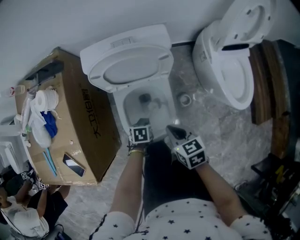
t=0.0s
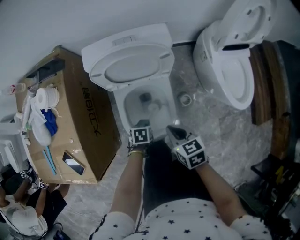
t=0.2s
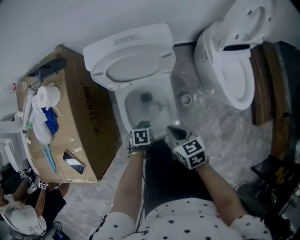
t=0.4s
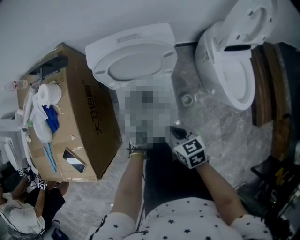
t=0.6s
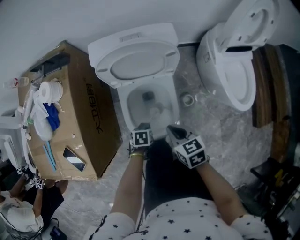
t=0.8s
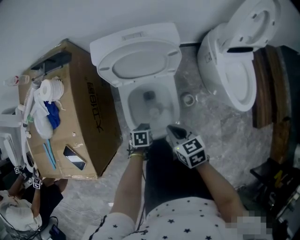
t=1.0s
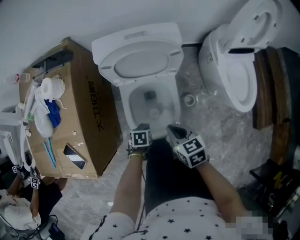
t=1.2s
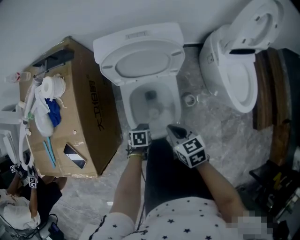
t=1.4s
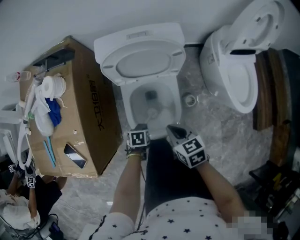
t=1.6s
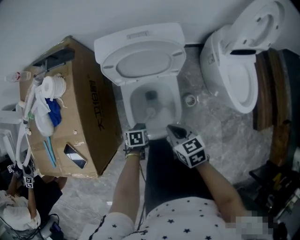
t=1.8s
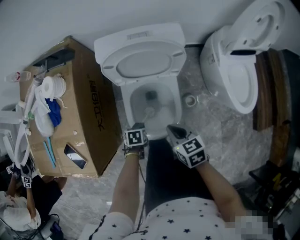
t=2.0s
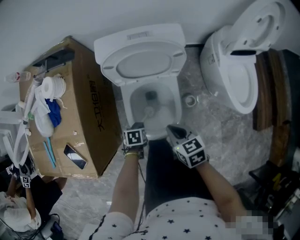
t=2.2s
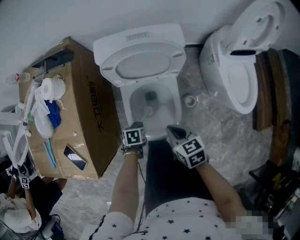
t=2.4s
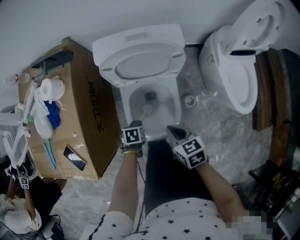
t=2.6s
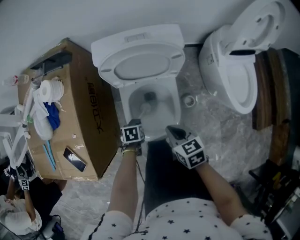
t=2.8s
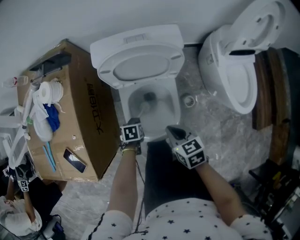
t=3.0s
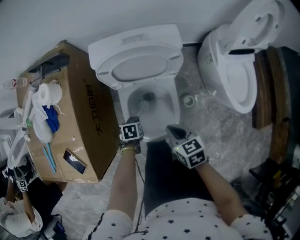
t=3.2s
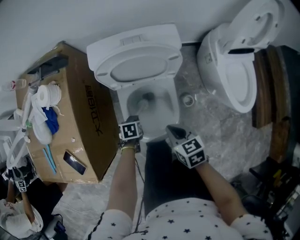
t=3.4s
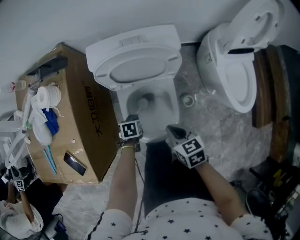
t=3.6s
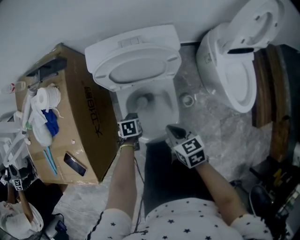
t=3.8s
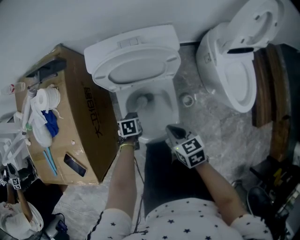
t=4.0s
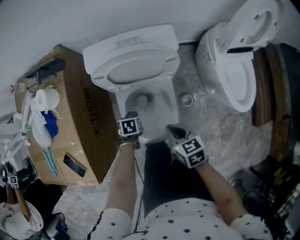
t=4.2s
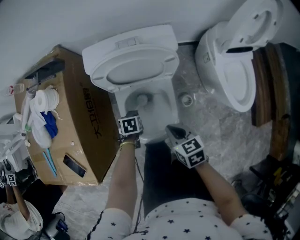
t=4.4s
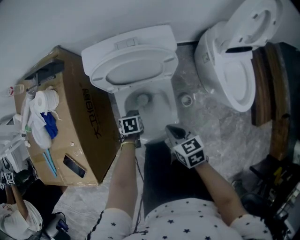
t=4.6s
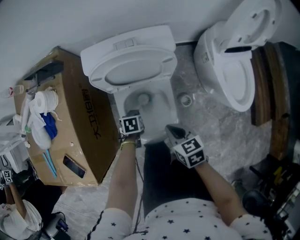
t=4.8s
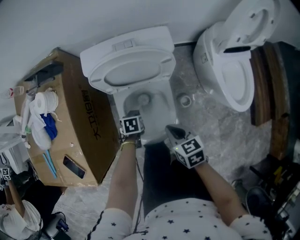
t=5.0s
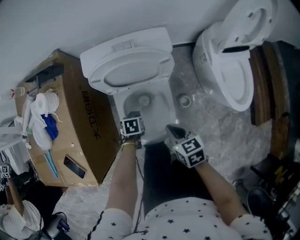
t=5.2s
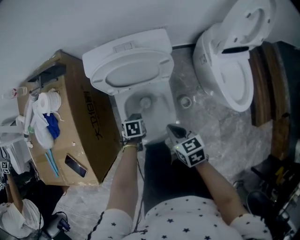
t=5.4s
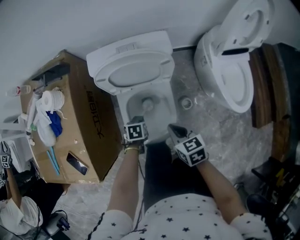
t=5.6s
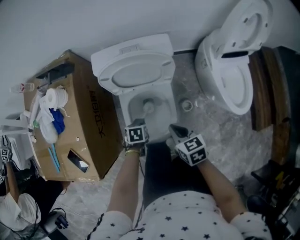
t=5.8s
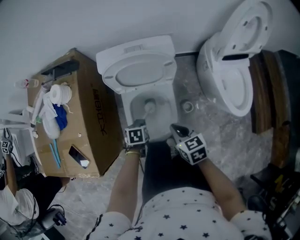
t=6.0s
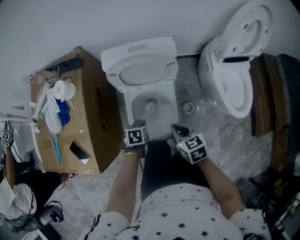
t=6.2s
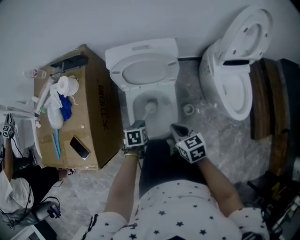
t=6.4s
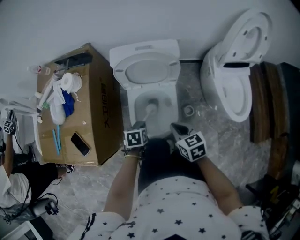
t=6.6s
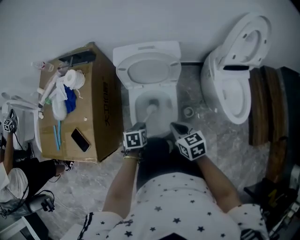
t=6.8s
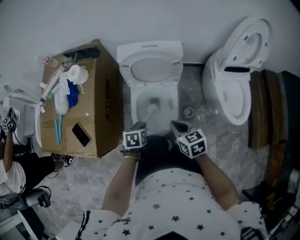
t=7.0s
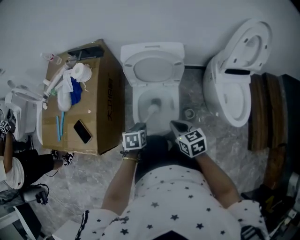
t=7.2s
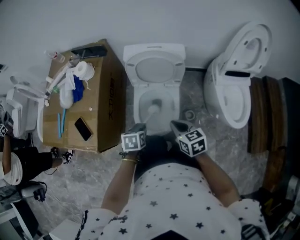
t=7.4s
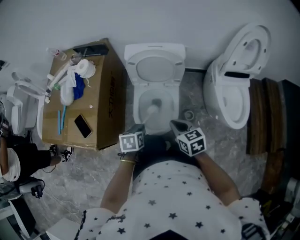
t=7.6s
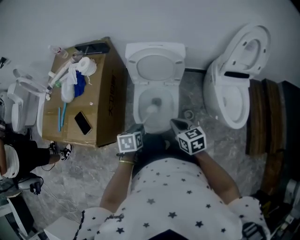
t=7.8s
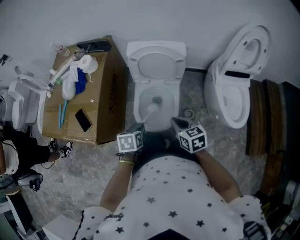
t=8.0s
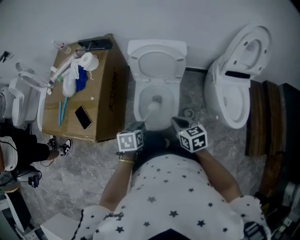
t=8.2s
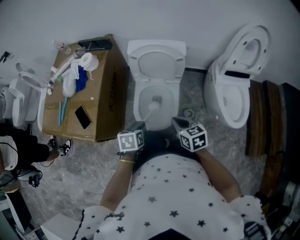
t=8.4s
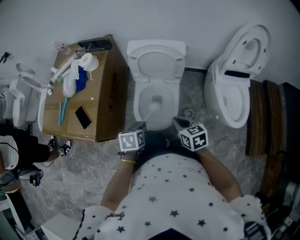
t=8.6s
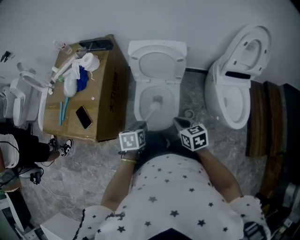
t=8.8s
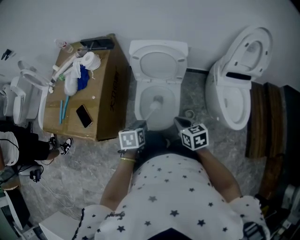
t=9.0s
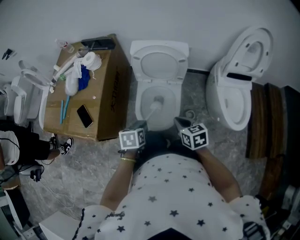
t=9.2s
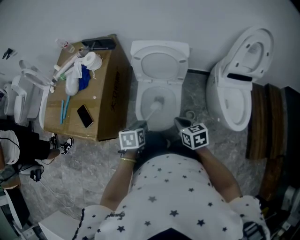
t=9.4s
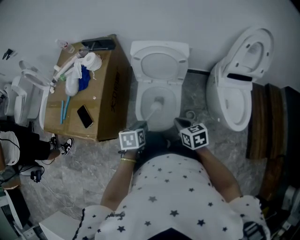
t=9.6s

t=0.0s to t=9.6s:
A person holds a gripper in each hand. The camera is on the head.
t=0.0s to t=1.6s: The left gripper changes place by approximately 10 cm.
t=1.6s to t=3.2s: The left gripper changes place by approximately 5 cm.
t=3.2s to t=4.8s: The left gripper shifts by about 5 cm.
t=4.8s to t=6.4s: The left gripper is displaced upward and backward by approximately 15 cm, while the right gripper heads upward, covering some 5 cm.
t=6.4s to t=8.0s: The left gripper is displaced backward and upward by roughly 15 cm, while the right gripper shifts roughly 10 cm upward and backward.
t=8.0s to t=9.6s: The grippers move only a little.

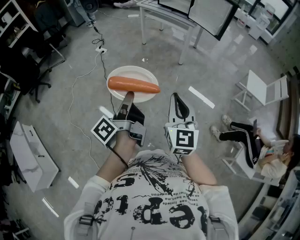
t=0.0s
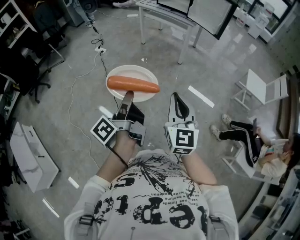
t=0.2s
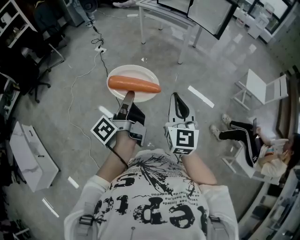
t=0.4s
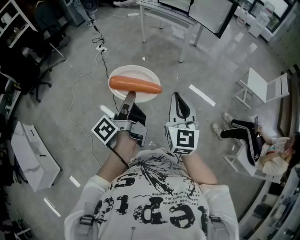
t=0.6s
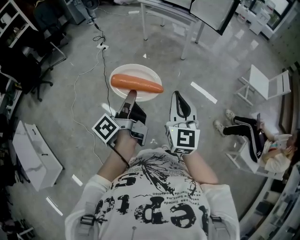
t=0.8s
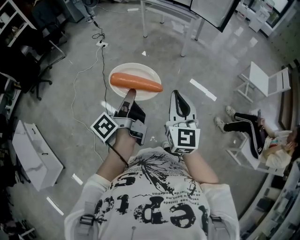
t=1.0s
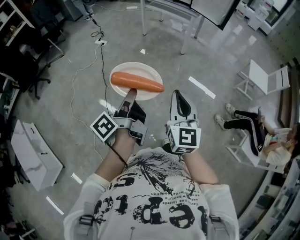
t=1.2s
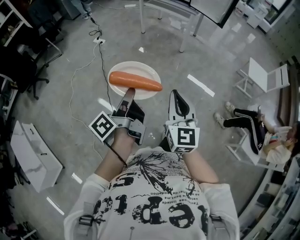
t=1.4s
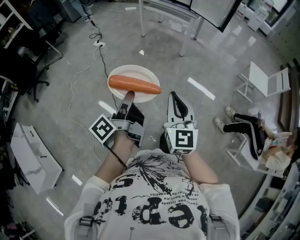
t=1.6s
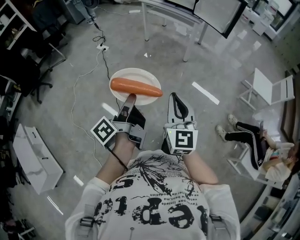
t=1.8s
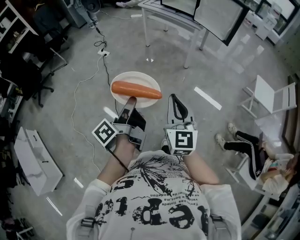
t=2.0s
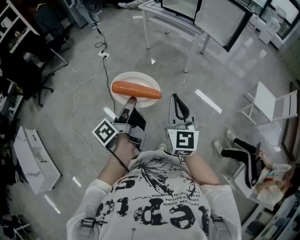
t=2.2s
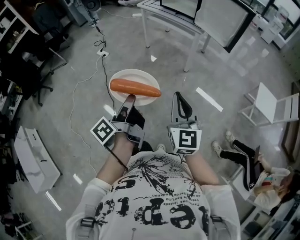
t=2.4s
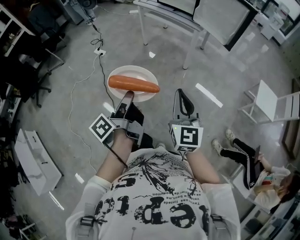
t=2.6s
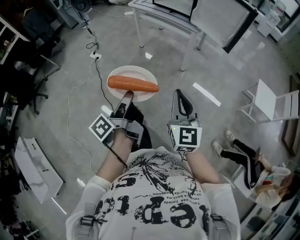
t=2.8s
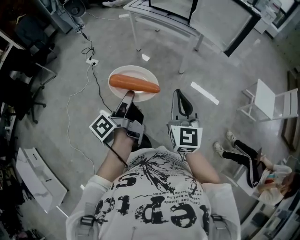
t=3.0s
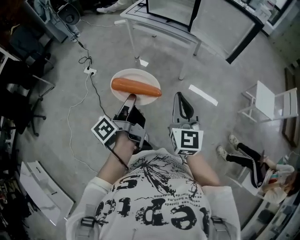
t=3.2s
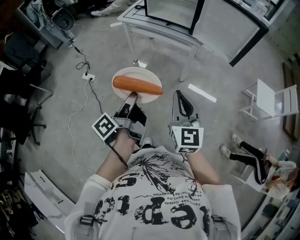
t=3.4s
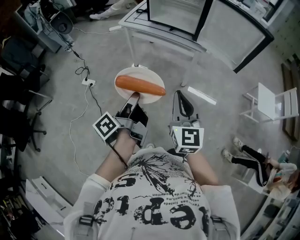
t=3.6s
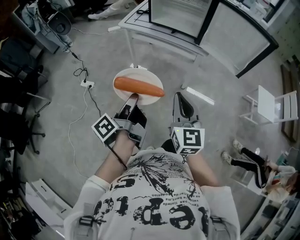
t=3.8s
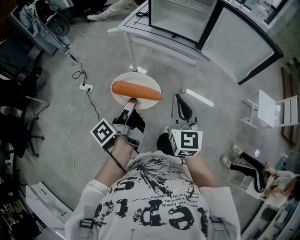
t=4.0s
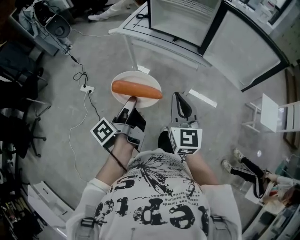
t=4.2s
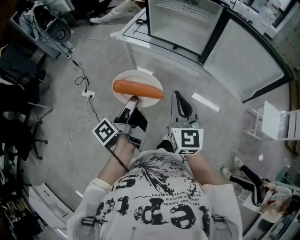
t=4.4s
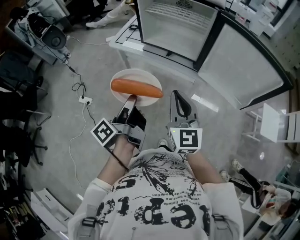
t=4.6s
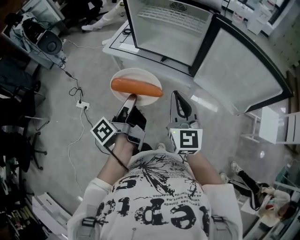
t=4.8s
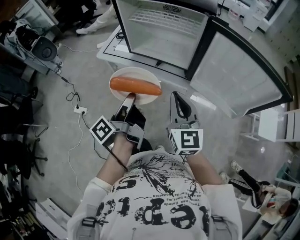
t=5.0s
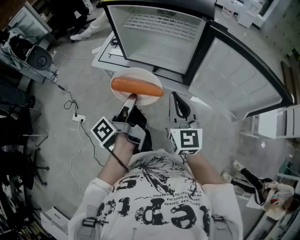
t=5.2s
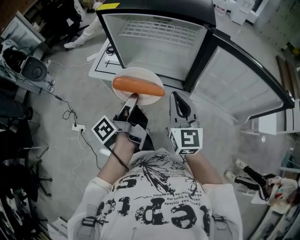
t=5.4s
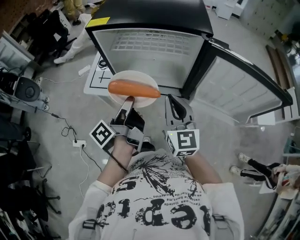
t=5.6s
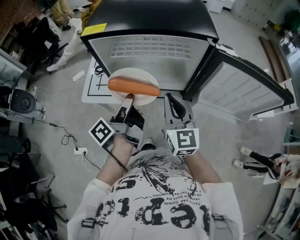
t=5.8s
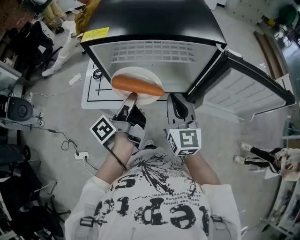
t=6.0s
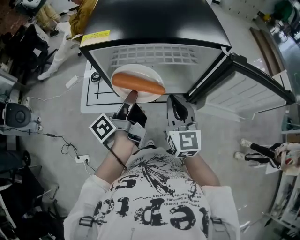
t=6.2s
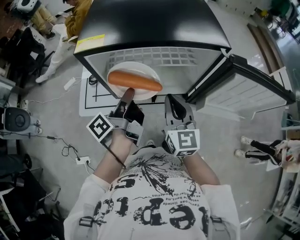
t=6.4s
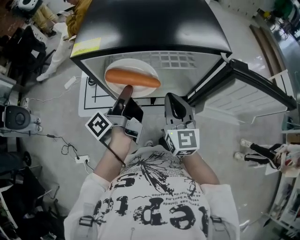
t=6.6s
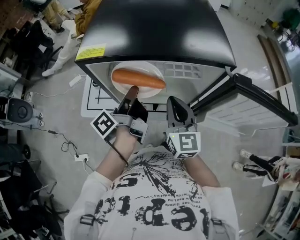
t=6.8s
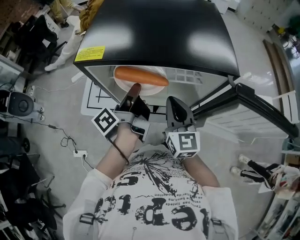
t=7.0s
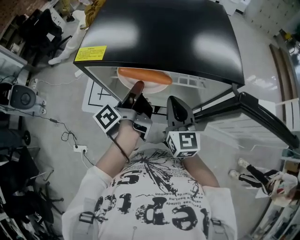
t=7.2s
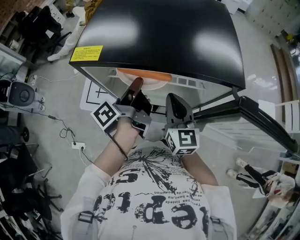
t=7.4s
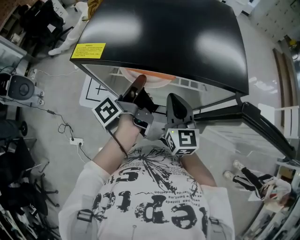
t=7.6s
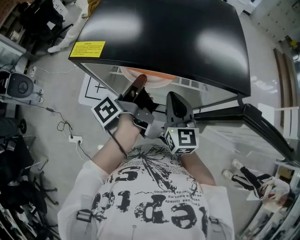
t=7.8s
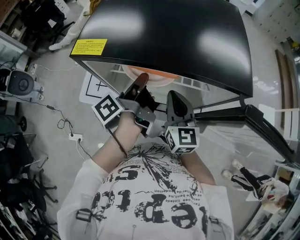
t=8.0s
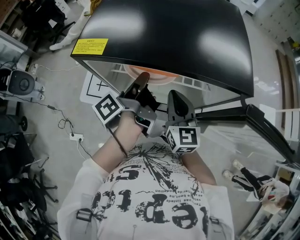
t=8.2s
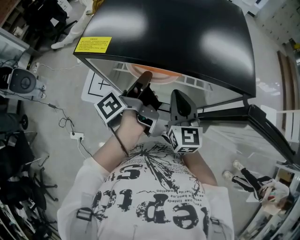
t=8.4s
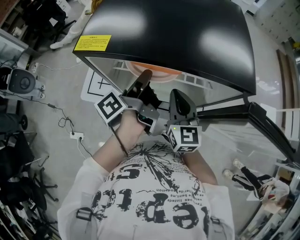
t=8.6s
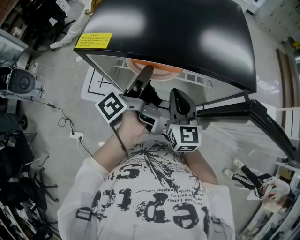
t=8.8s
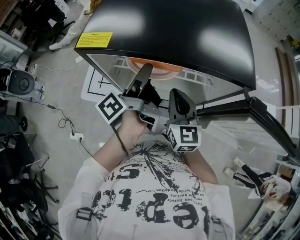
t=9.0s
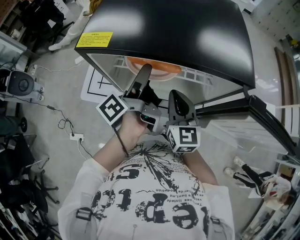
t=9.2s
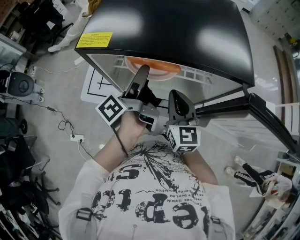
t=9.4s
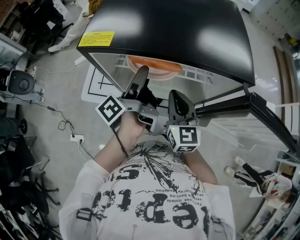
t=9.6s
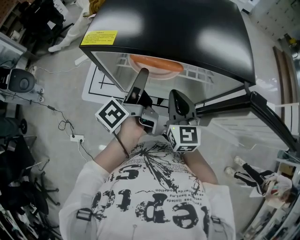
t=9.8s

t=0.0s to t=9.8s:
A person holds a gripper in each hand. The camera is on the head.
t=0.0s to t=1.4s: The right gripper ends up approximately 5 cm from where it was.
t=1.4s to t=2.8s: The right gripper shifts by approximately 35 cm.
t=2.8s to t=4.2s: The right gripper ends up some 40 cm from where it was.
t=4.2s to t=5.6s: The right gripper moves some 35 cm.
t=5.6s to t=7.0s: The right gripper shifts by about 15 cm.

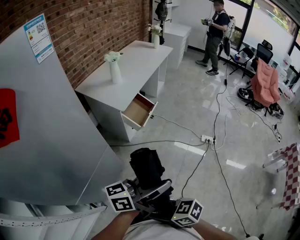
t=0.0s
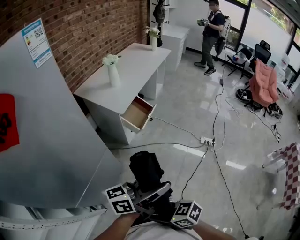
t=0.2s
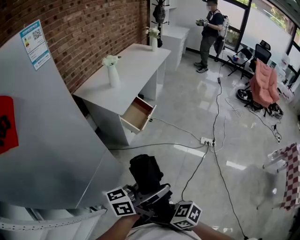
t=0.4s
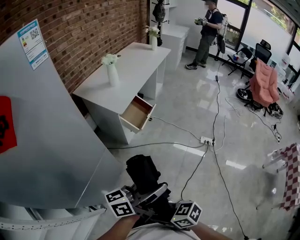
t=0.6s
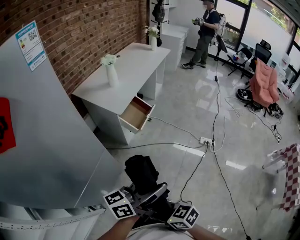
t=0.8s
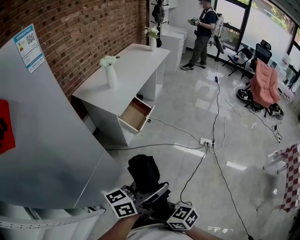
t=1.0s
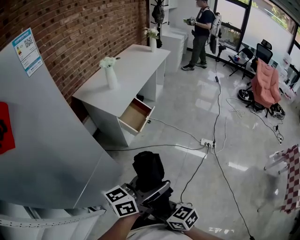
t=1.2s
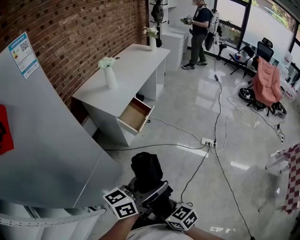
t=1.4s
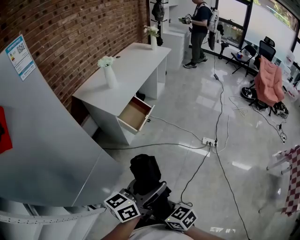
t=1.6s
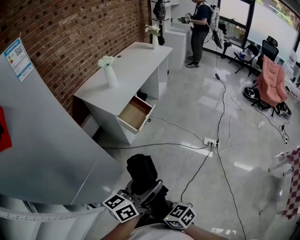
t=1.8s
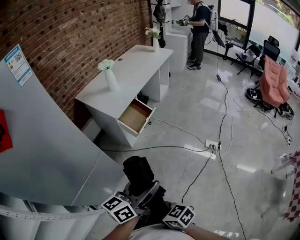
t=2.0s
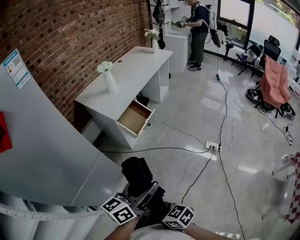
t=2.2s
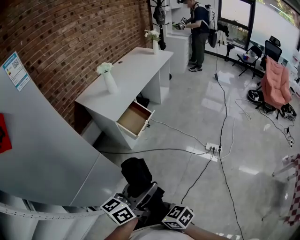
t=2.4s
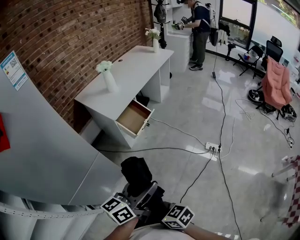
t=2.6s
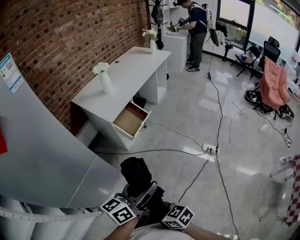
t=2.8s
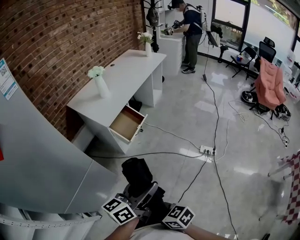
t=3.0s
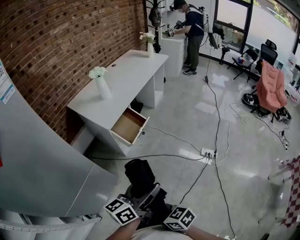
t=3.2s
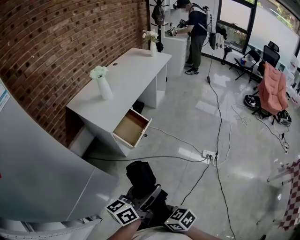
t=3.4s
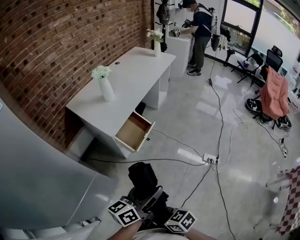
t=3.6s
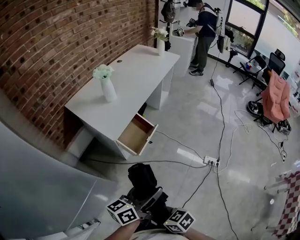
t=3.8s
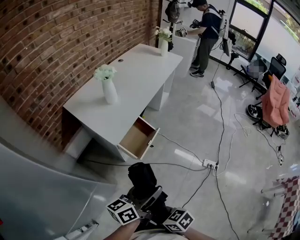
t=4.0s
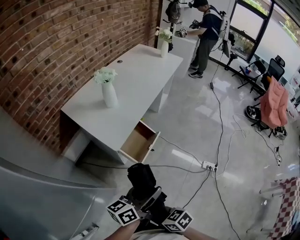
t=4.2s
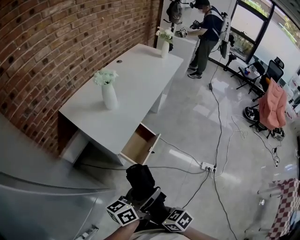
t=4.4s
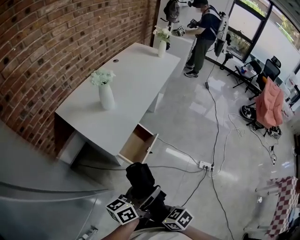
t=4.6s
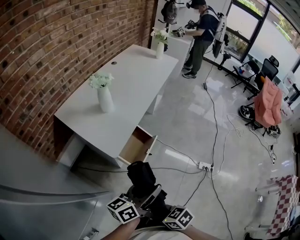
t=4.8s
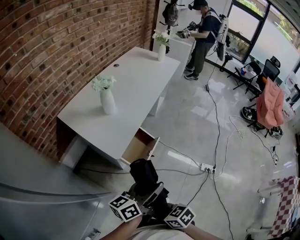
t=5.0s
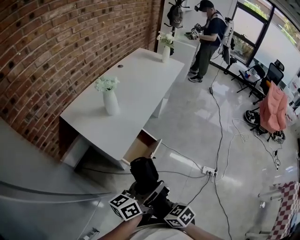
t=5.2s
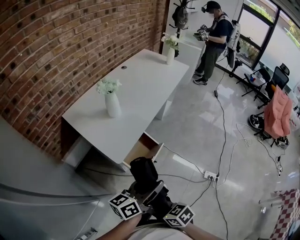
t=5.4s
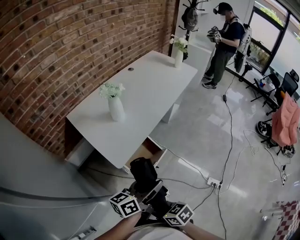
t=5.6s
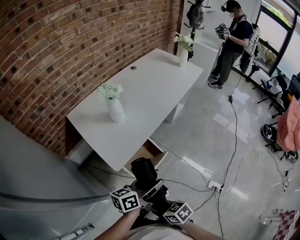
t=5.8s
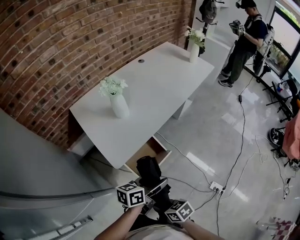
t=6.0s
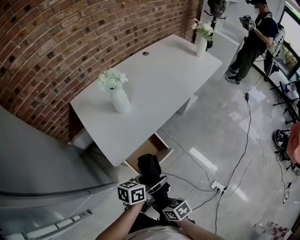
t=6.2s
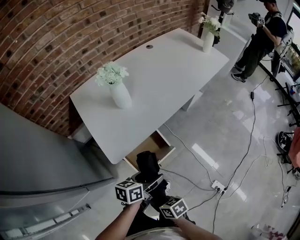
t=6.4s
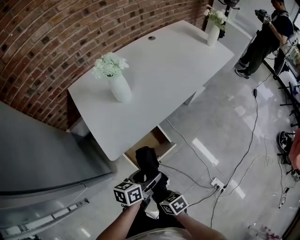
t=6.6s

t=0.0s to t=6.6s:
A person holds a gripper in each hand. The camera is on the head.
t=0.0s to t=1.6s: The left gripper moves approximately 5 cm, and changes its angle by approximately 20 degrees. Meanwhile the right gripper shifts by roughly 10 cm.
t=1.6s to t=3.2s: The right gripper travels to the right by about 10 cm; the left gripper is displaced to the right and forward by roughly 10 cm.
t=3.2s to t=5.0s: The two grippers go approximately 30 cm forward.
t=5.0s to t=6.6s: The right gripper changes place by roughly 25 cm; the left gripper is displaced downward by approximately 20 cm, and angles its fingers downward, by some 30 degrees.
